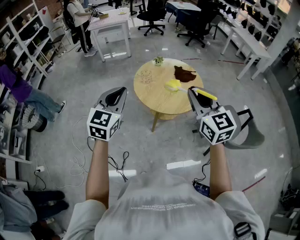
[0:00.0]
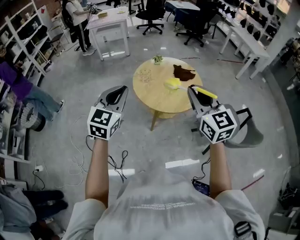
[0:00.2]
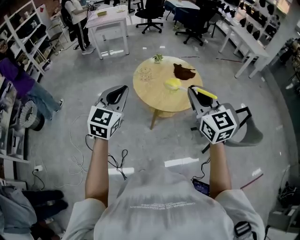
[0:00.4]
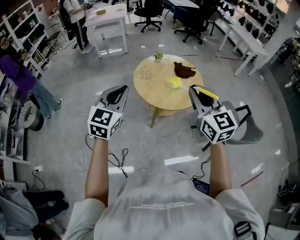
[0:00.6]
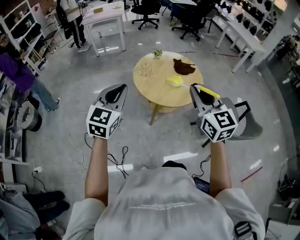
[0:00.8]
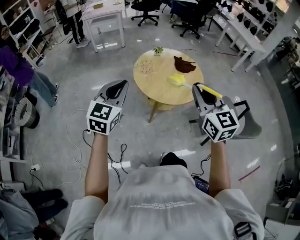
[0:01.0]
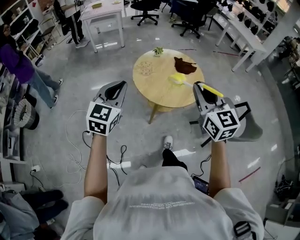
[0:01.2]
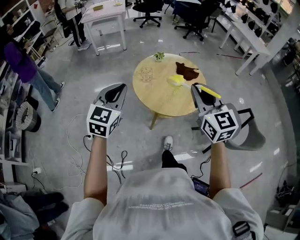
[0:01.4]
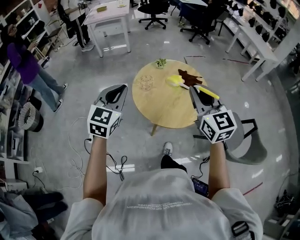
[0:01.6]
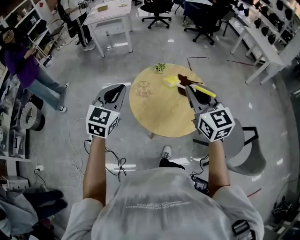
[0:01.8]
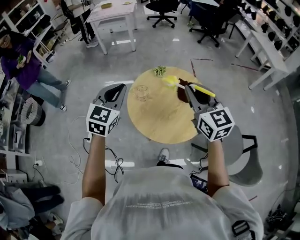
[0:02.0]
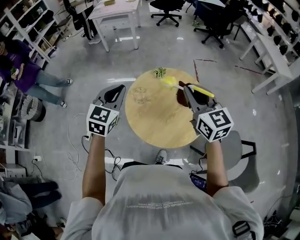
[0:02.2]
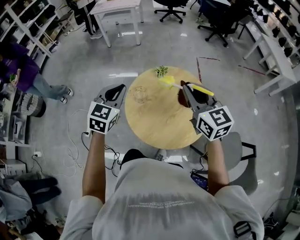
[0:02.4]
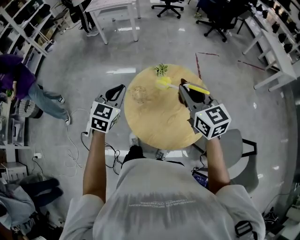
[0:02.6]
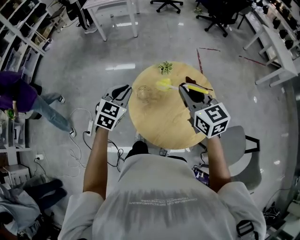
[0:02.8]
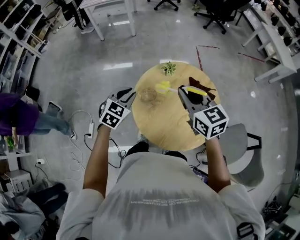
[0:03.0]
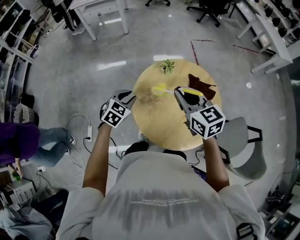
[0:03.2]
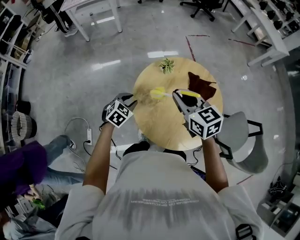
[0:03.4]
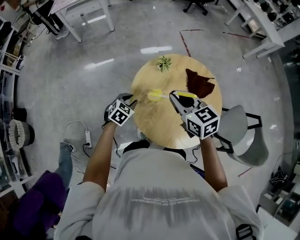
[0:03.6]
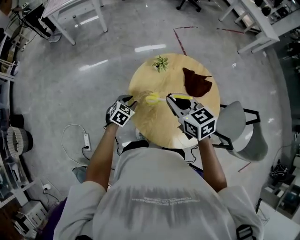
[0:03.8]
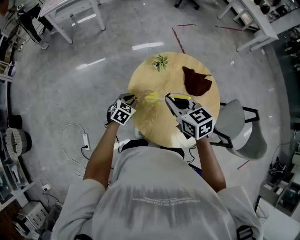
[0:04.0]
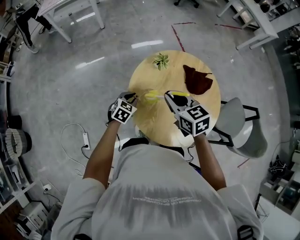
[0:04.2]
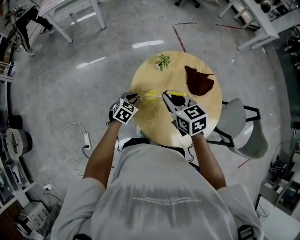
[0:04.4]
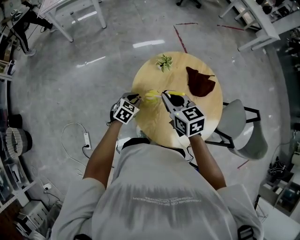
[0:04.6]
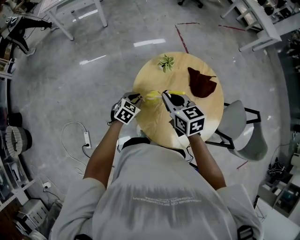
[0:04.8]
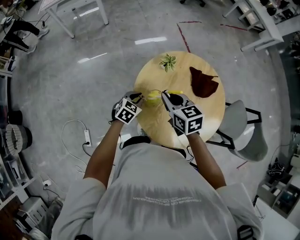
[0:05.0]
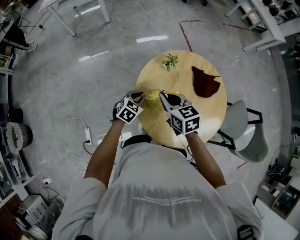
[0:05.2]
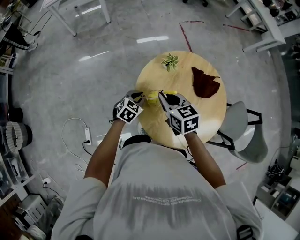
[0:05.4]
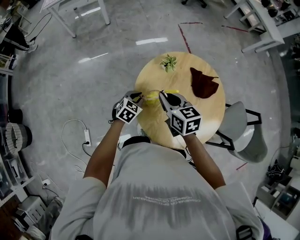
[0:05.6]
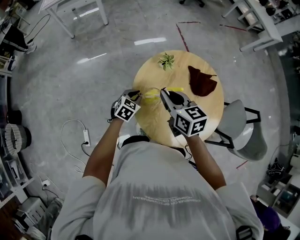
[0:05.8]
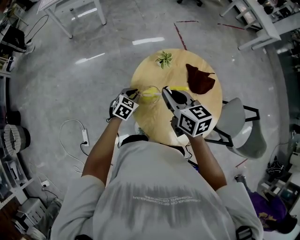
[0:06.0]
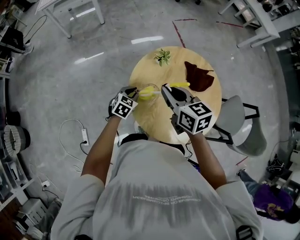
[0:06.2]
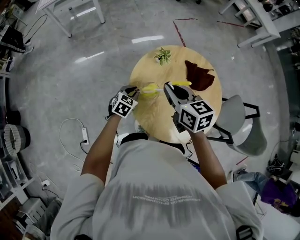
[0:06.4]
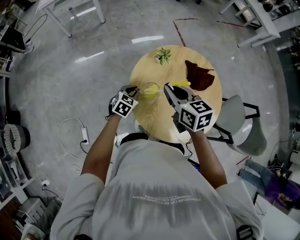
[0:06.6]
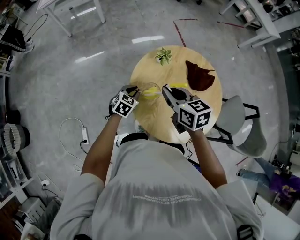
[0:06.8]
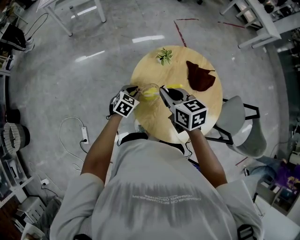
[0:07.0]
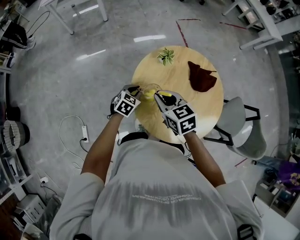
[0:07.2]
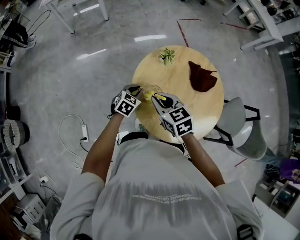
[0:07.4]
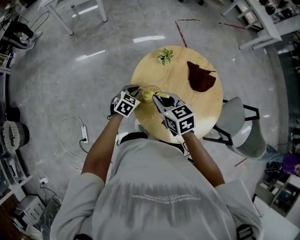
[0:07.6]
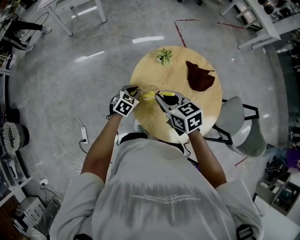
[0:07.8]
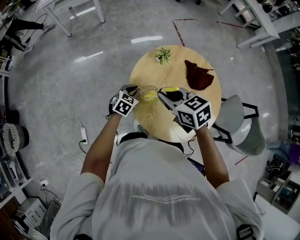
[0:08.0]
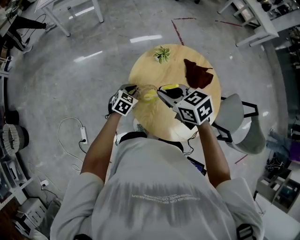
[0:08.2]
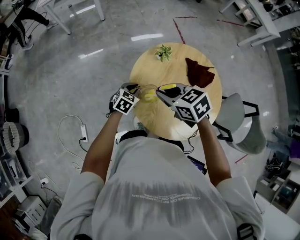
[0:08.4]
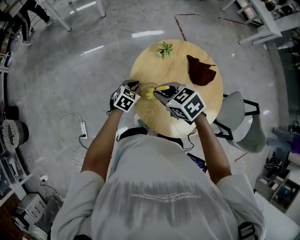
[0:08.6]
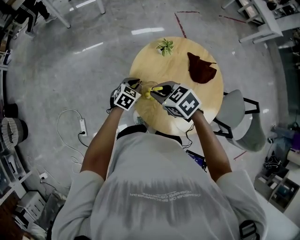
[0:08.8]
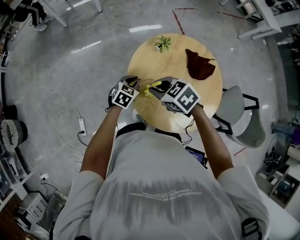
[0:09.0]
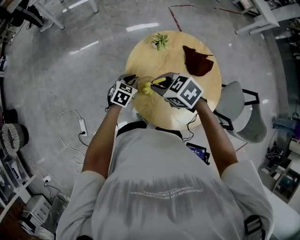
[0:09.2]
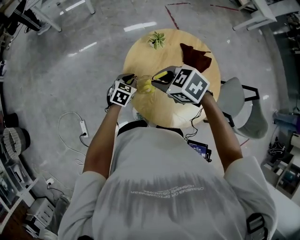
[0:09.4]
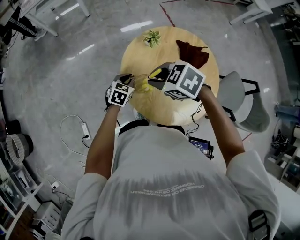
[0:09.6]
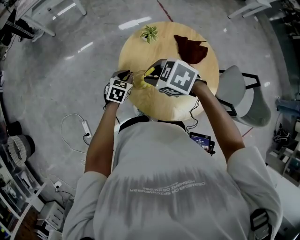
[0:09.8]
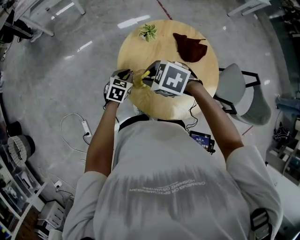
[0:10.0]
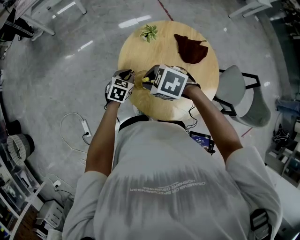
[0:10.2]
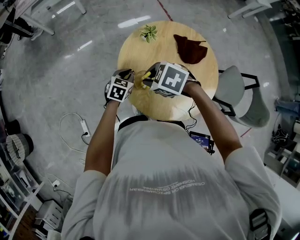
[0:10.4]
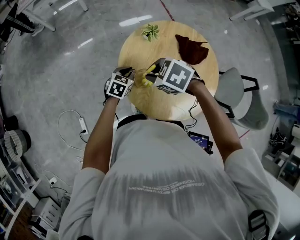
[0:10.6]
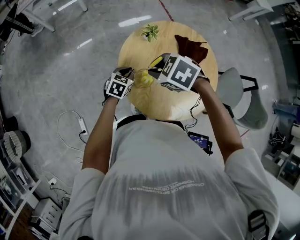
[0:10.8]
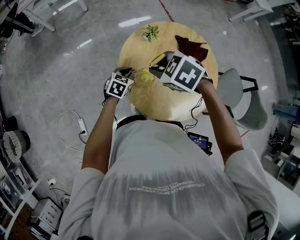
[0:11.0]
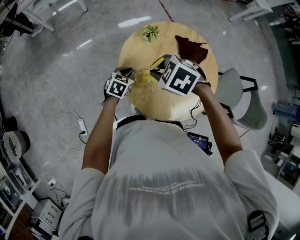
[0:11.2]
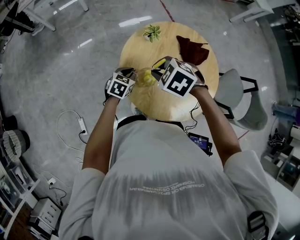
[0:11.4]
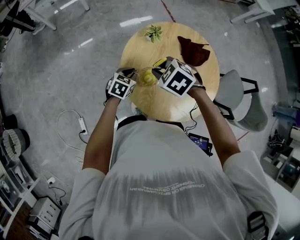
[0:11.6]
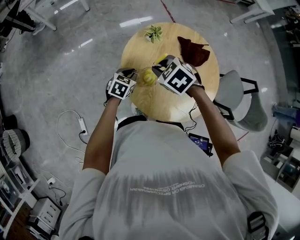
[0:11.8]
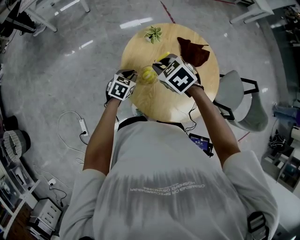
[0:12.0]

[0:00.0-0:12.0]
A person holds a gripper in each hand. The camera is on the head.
0:00.0 to 0:01.6: The two grippers go approximately 15 cm forward.
0:01.6 to 0:03.0: Both grippers travel together forward and downward, some 25 cm. The left gripper swivels some 20 degrees, while the right gripper changes its angle by some 20 degrees.
0:03.0 to 0:04.4: The left gripper moves downward, about 20 cm, and rotates some 20 degrees. Meanwhile the right gripper shifts approximately 15 cm downward and to the left, and turns by about 20 degrees.
0:04.4 to 0:06.0: The grippers make only small movements.
0:06.0 to 0:07.6: The right gripper is displaced downward by roughly 5 cm.
0:07.6 to 0:09.0: The right gripper turns by some 30 degrees.
0:09.0 to 0:10.4: The grippers stay close to where they were, moving slightly.
0:10.4 to 0:12.0: The right gripper shifts by about 5 cm, and turns by about 20 degrees.

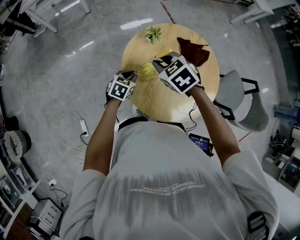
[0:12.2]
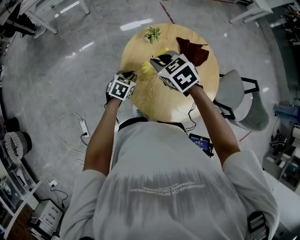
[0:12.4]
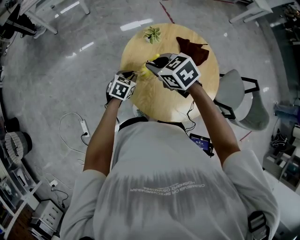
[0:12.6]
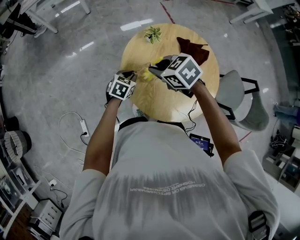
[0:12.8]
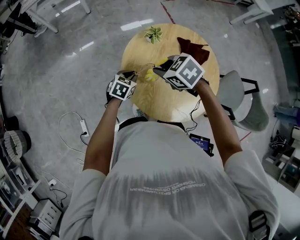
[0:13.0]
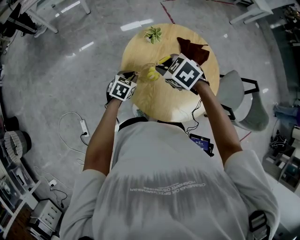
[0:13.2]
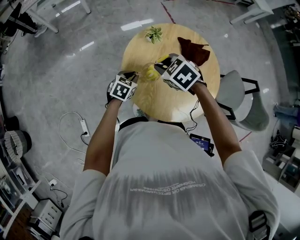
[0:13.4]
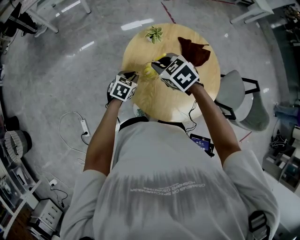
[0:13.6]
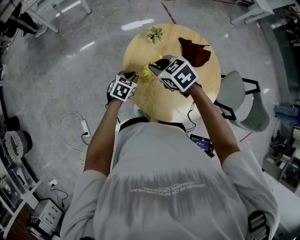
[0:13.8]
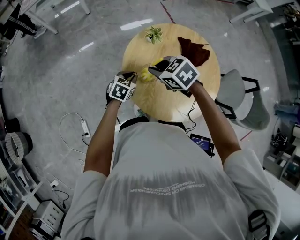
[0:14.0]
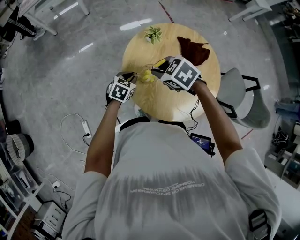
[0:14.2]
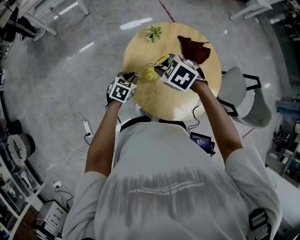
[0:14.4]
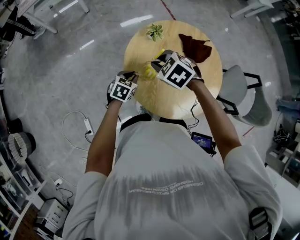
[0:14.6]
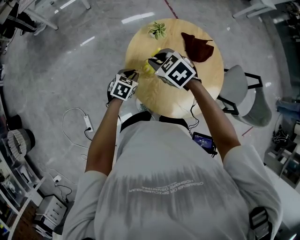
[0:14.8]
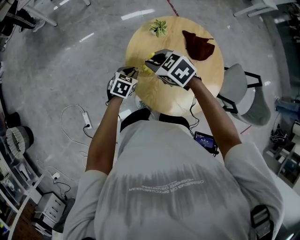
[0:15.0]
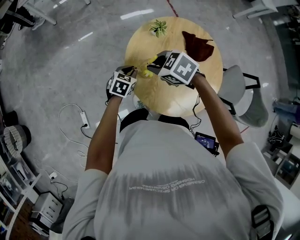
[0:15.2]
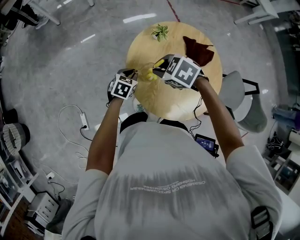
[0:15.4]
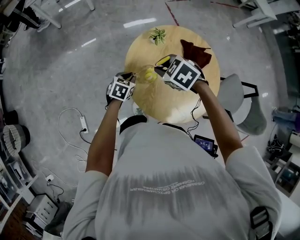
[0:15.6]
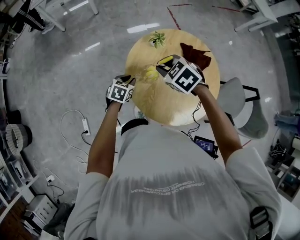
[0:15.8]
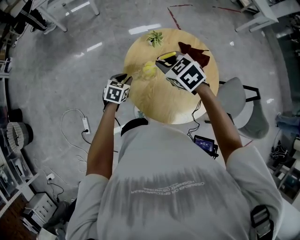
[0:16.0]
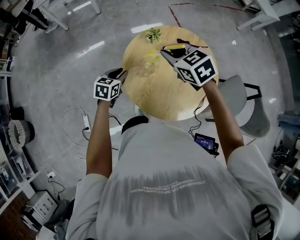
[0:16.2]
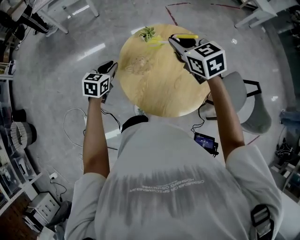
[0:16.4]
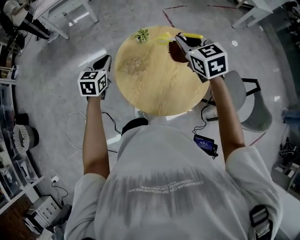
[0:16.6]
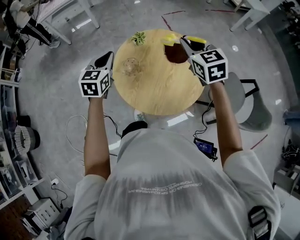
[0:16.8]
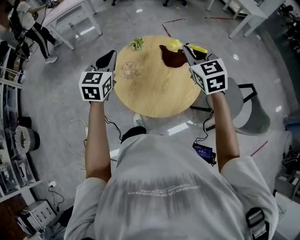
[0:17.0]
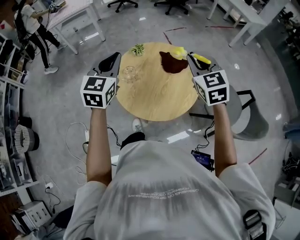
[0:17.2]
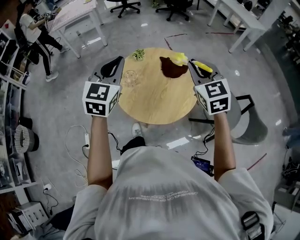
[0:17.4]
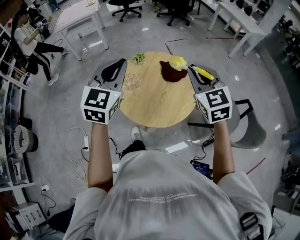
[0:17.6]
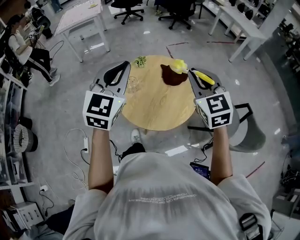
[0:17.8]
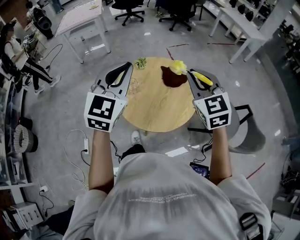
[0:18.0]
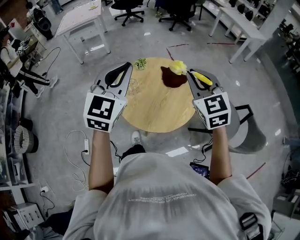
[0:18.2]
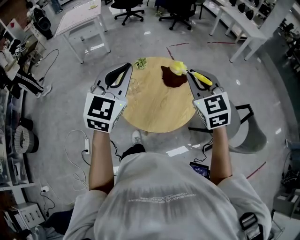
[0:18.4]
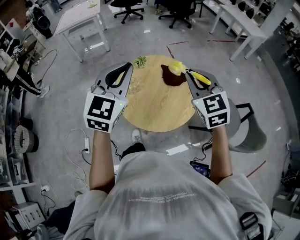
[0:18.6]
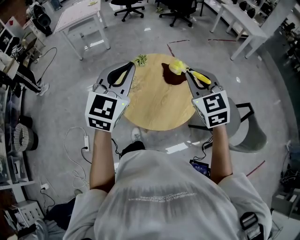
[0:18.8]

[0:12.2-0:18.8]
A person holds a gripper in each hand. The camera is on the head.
0:12.2 to 0:13.8: The grippers stay close to where they were, moving slightly.
0:13.8 to 0:15.4: The right gripper rotates roughly 20 degrees.
0:15.4 to 0:17.2: The right gripper goes roughly 35 cm to the right and upward, and tips its fingers upward by some 40 degrees. The left gripper travels upward by some 40 cm, and tips its fingers upward by about 30 degrees.
0:17.2 to 0:18.8: The left gripper shifts roughly 10 cm upward, backward and to the right, while the right gripper ends up roughly 5 cm from where it was.

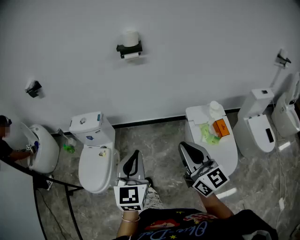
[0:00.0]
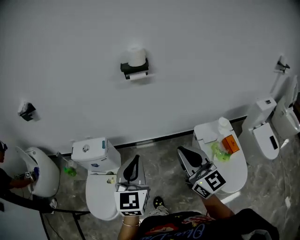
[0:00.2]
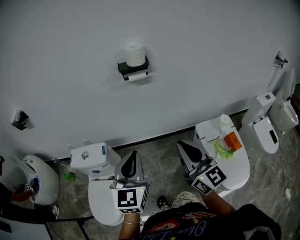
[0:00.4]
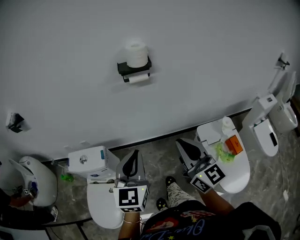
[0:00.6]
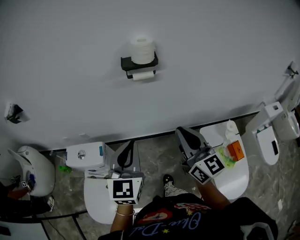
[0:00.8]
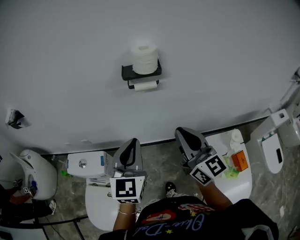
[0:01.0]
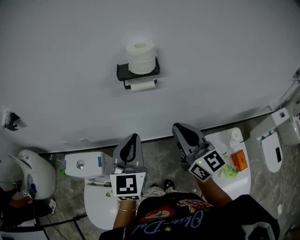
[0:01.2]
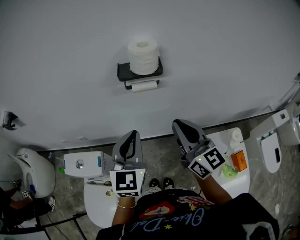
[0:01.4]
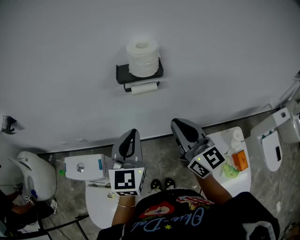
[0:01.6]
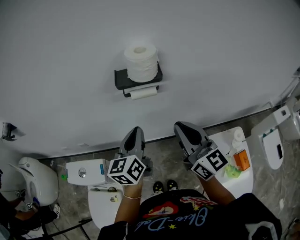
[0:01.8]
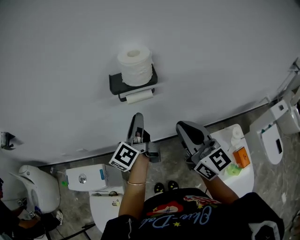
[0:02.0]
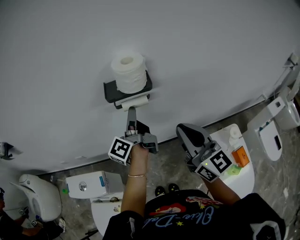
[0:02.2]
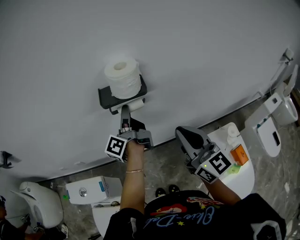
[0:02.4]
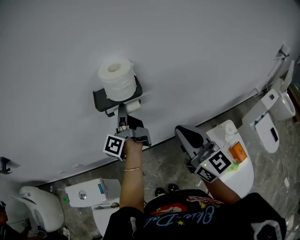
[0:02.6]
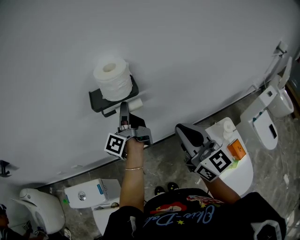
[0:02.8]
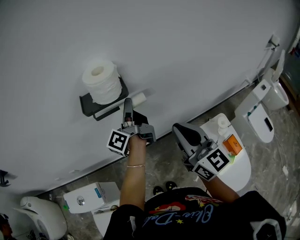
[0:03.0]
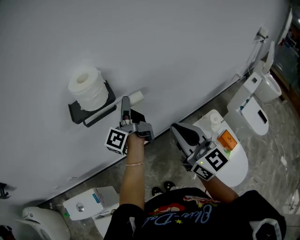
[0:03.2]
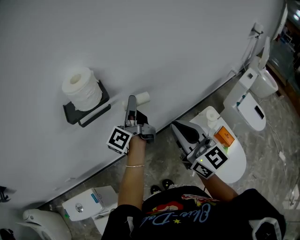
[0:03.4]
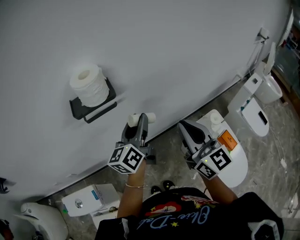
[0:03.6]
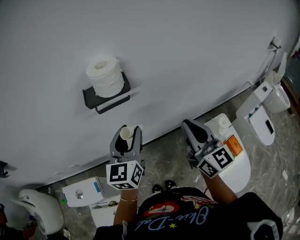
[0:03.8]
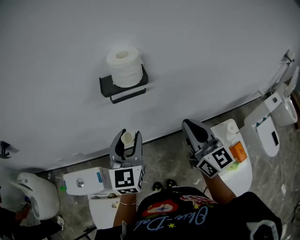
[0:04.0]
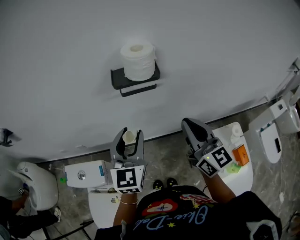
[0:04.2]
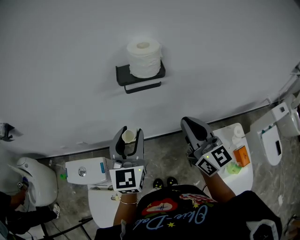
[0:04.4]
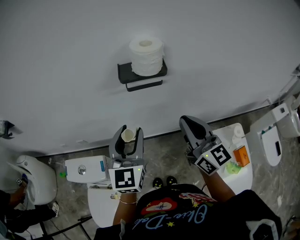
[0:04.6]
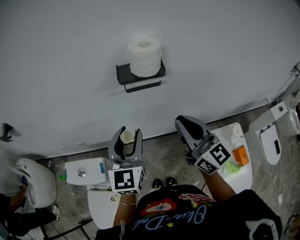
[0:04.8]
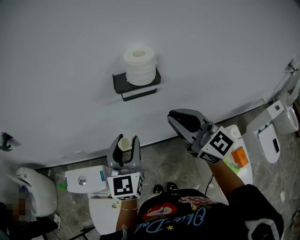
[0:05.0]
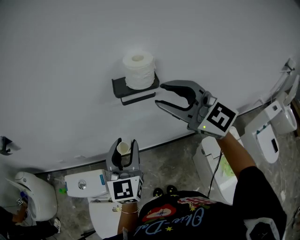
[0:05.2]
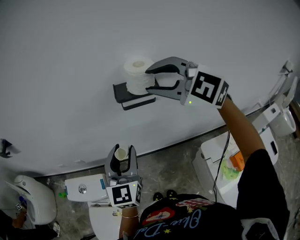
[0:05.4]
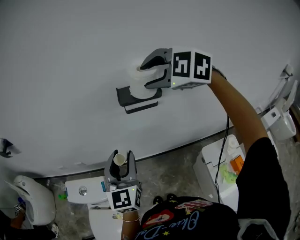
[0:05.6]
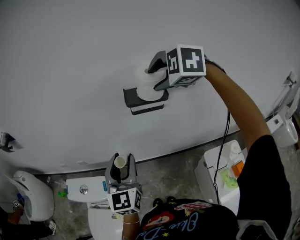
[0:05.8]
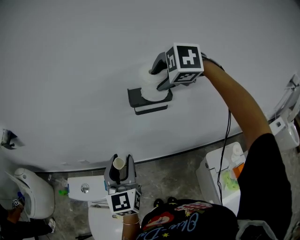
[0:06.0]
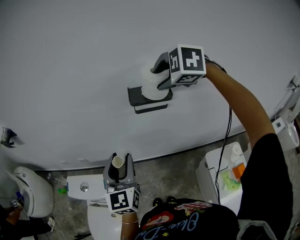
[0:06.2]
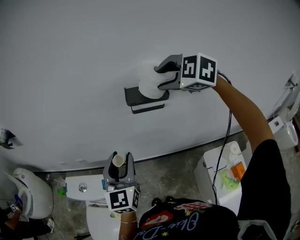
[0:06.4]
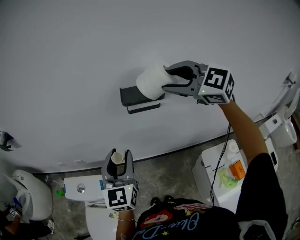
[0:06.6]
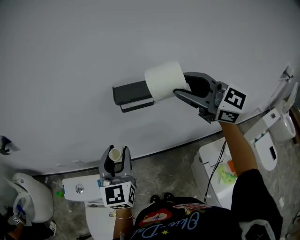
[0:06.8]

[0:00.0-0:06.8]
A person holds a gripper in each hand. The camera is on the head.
0:00.0 to 0:01.4: The pair of grippers is taken forward, some 50 cm.
0:01.4 to 0:02.8: The left gripper is displaced forward by approximately 20 cm, twists approximately 90 degrees counterclockwise, seen from behind, and opens its fingers, while the right gripper moves to the right, about 5 cm.
0:02.8 to 0:04.0: The left gripper shifts some 15 cm backward, and rolls clockwise, seen from behind, by roughly 80 degrees.
0:04.0 to 0:05.4: The left gripper heads to the left, covering approximately 5 cm. The right gripper is displaced upward, to the left and forward by approximately 20 cm, swivels some 70 degrees, and opens up.
0:05.4 to 0:06.8: The right gripper goes roughly 10 cm to the right, and turns by approximately 40 degrees.
